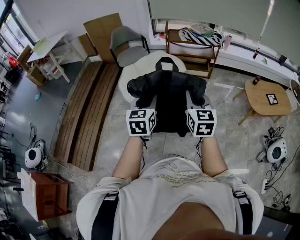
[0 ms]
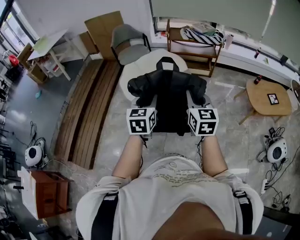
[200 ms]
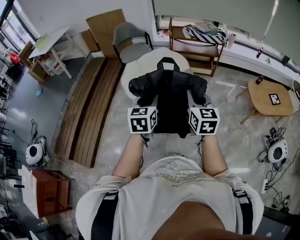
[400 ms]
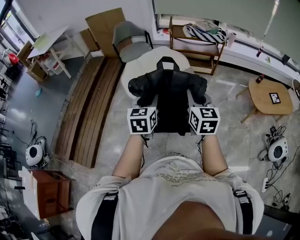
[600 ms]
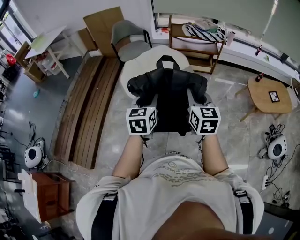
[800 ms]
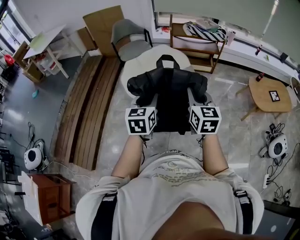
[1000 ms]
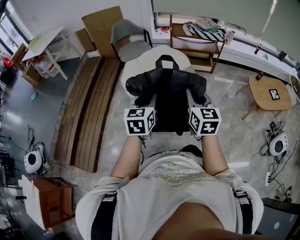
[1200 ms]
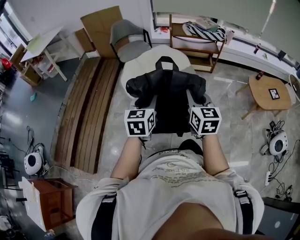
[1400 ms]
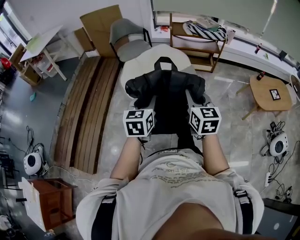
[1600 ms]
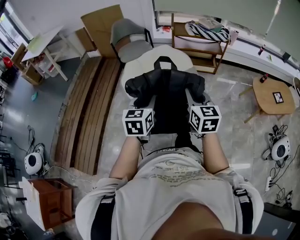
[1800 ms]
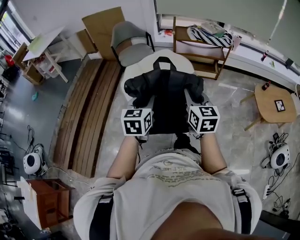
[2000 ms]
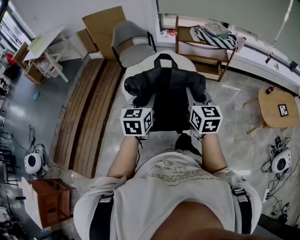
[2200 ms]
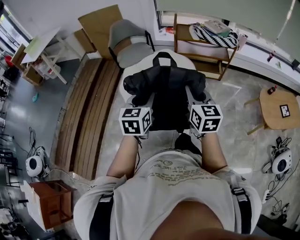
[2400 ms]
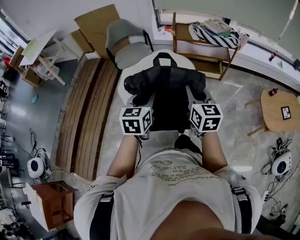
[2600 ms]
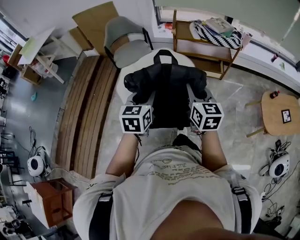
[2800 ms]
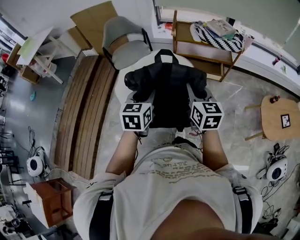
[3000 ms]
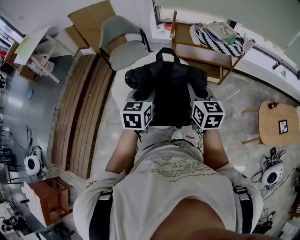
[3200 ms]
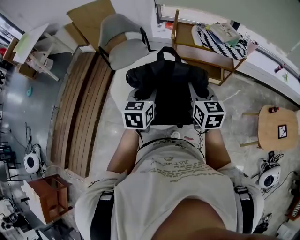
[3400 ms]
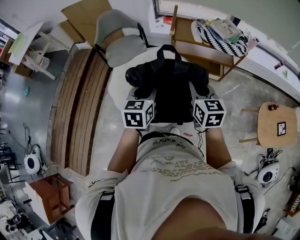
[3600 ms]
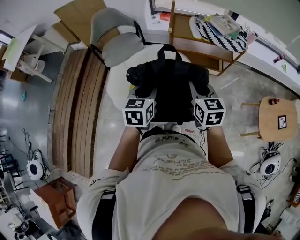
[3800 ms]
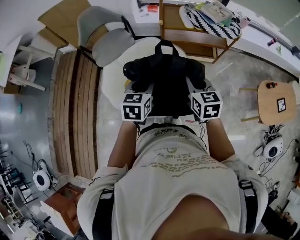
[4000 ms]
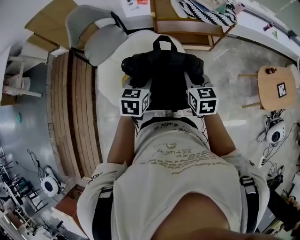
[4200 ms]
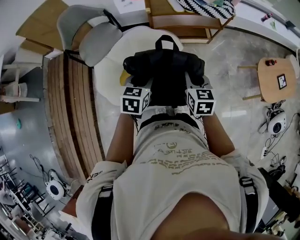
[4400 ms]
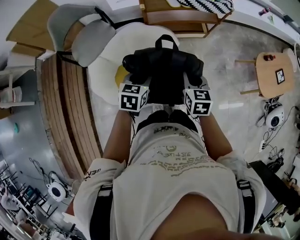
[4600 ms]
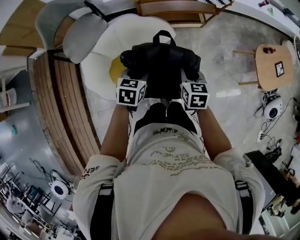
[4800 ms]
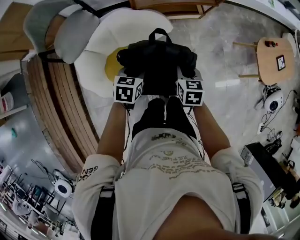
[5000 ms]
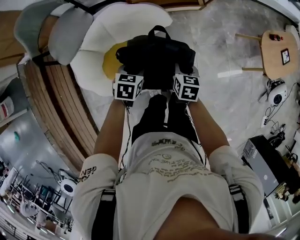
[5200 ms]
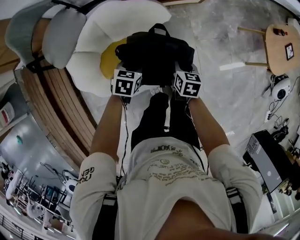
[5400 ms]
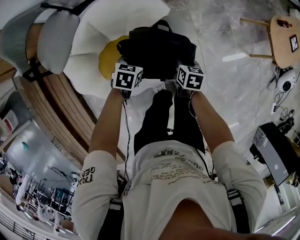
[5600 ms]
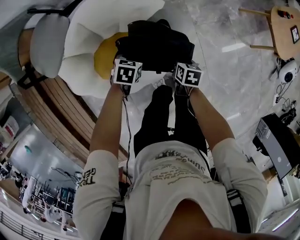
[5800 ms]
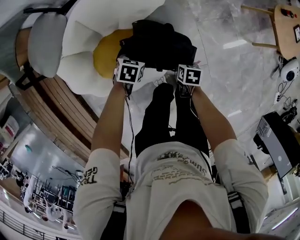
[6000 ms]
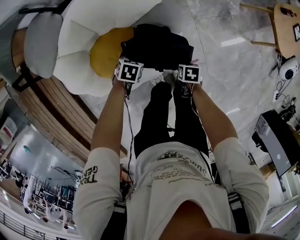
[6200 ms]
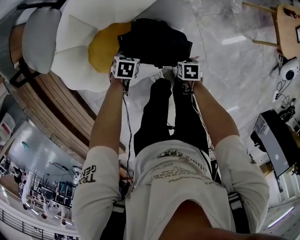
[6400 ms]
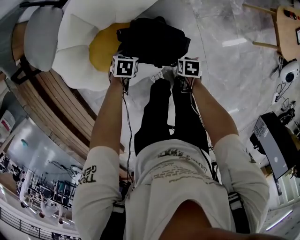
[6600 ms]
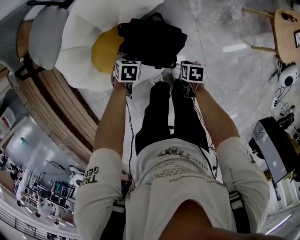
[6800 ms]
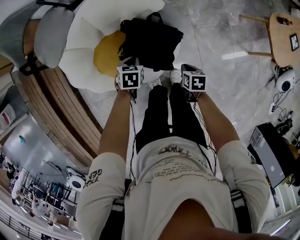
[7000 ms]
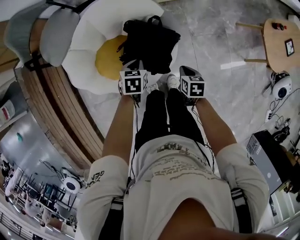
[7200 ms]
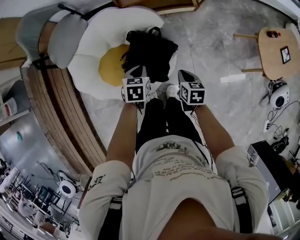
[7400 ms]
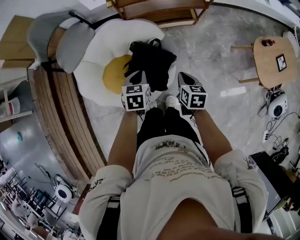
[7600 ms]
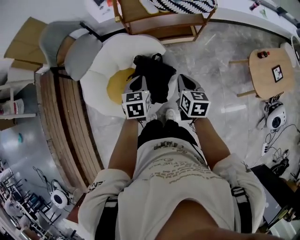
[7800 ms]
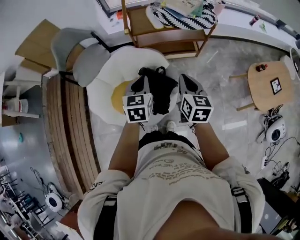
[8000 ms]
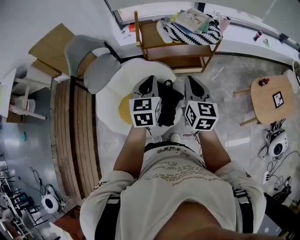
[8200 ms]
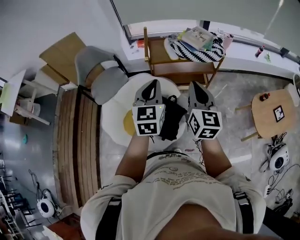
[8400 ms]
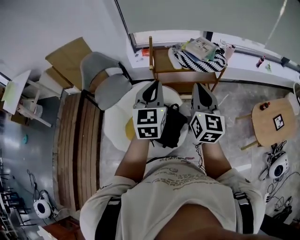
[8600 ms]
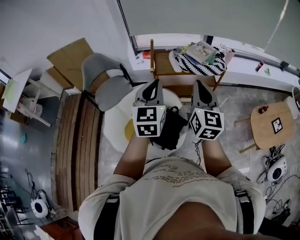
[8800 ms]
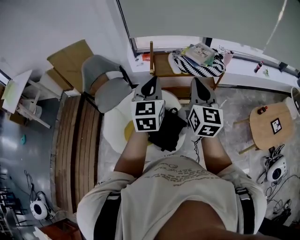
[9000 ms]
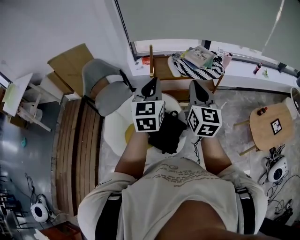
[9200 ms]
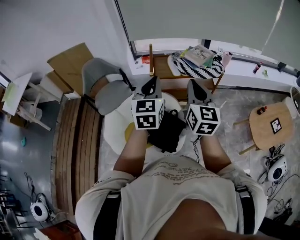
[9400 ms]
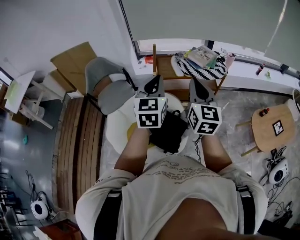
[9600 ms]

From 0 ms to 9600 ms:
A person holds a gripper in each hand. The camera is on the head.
From 0 ms to 1600 ms: The grippers move only a little.
From 1600 ms to 3200 ms: Both grippers move forward, roughly 30 cm.
From 3200 ms to 4800 ms: Both grippers travel together downward, about 20 cm. The right gripper changes its angle by approximately 40 degrees. The left gripper swivels roughly 40 degrees.
From 4800 ms to 6400 ms: Both grippers travel together downward, roughly 35 cm. The left gripper changes its angle by approximately 30 degrees, while the right gripper angles its fingers downward, by some 40 degrees.
From 6400 ms to 8000 ms: Both grippers move upward, roughly 50 cm. The left gripper tilts its fingers some 40 degrees upward, and closes its fingers. The right gripper tips its fingers upward by approximately 60 degrees, and closes up.
From 8000 ms to 9600 ms: Both grippers travel together upward, approximately 25 cm. The right gripper changes its angle by about 30 degrees, while the left gripper changes its angle by approximately 30 degrees.

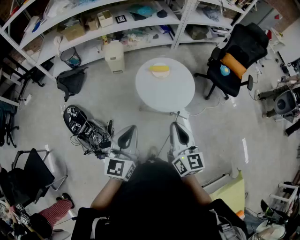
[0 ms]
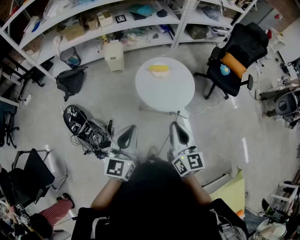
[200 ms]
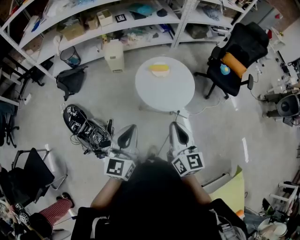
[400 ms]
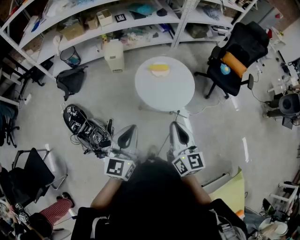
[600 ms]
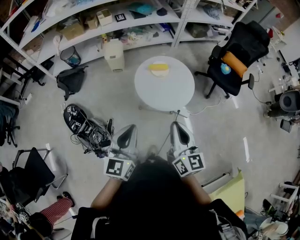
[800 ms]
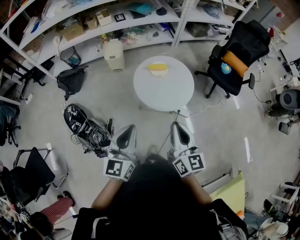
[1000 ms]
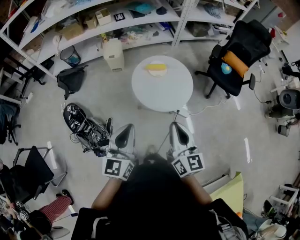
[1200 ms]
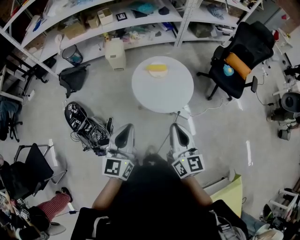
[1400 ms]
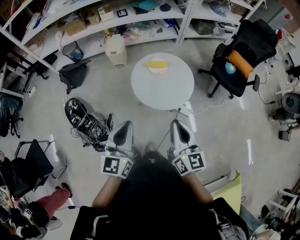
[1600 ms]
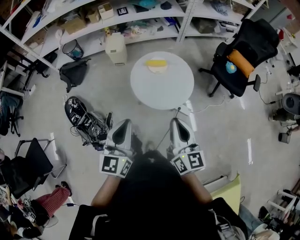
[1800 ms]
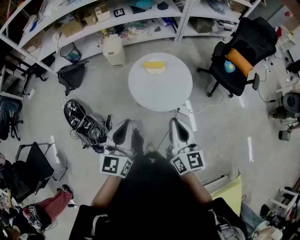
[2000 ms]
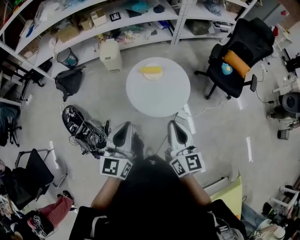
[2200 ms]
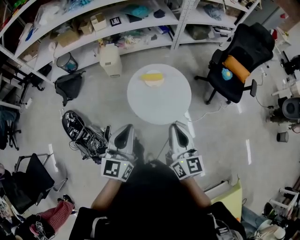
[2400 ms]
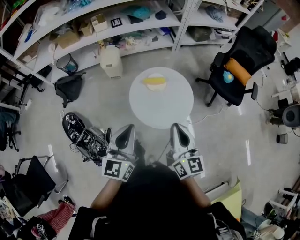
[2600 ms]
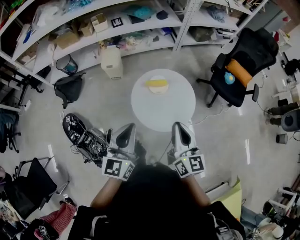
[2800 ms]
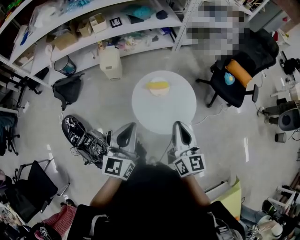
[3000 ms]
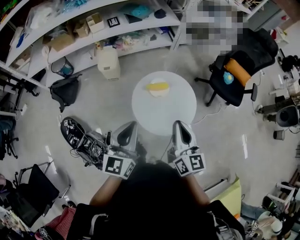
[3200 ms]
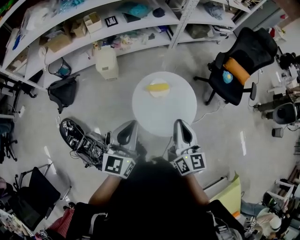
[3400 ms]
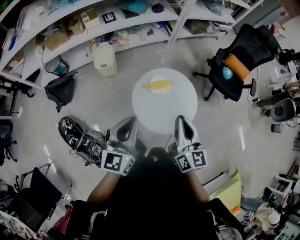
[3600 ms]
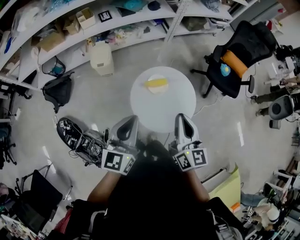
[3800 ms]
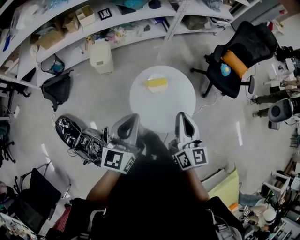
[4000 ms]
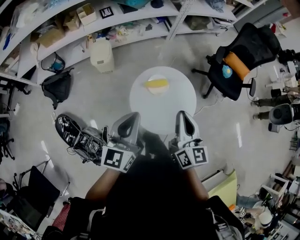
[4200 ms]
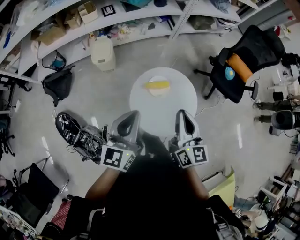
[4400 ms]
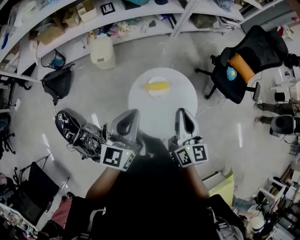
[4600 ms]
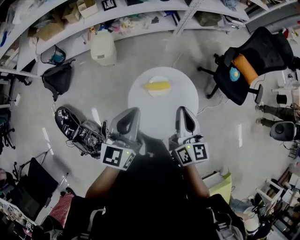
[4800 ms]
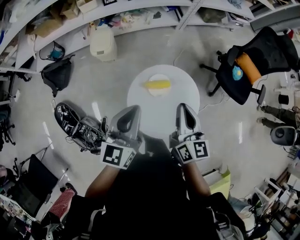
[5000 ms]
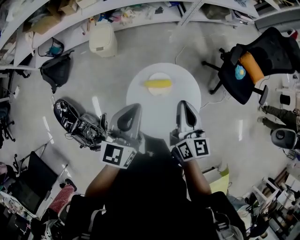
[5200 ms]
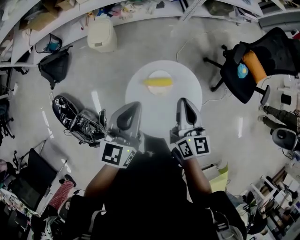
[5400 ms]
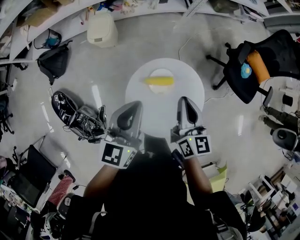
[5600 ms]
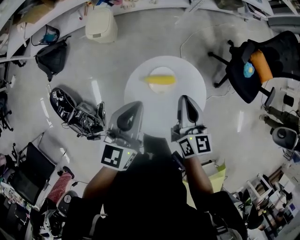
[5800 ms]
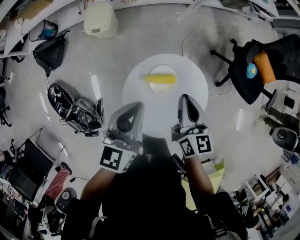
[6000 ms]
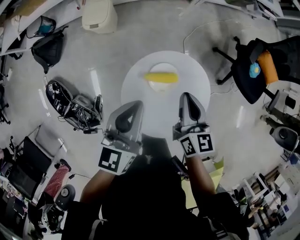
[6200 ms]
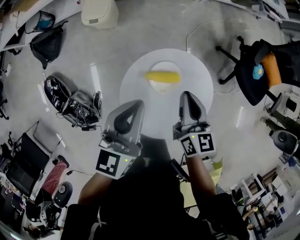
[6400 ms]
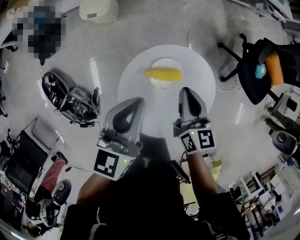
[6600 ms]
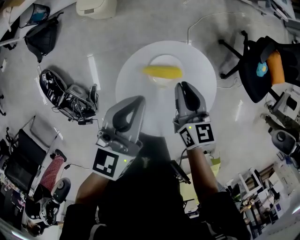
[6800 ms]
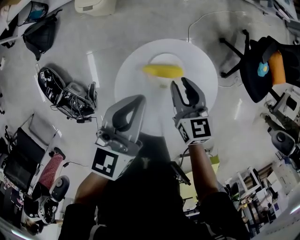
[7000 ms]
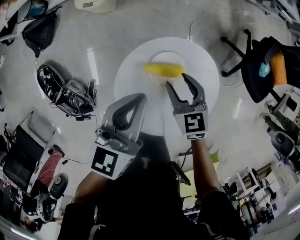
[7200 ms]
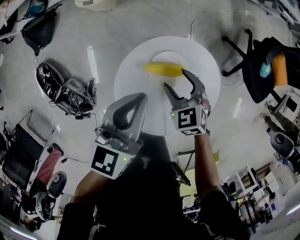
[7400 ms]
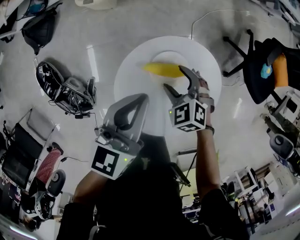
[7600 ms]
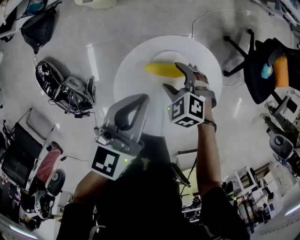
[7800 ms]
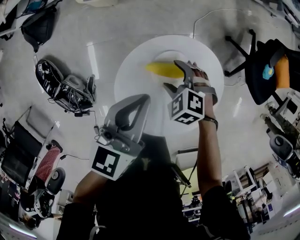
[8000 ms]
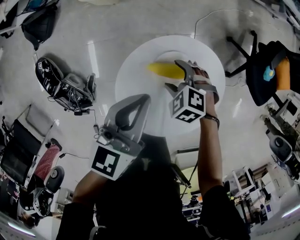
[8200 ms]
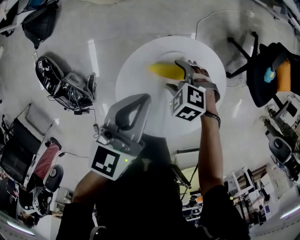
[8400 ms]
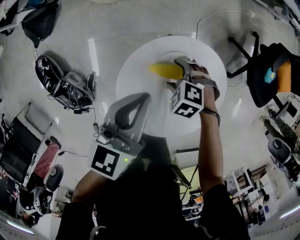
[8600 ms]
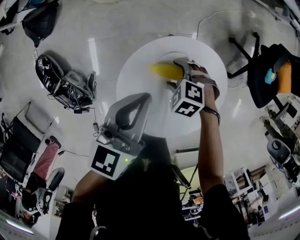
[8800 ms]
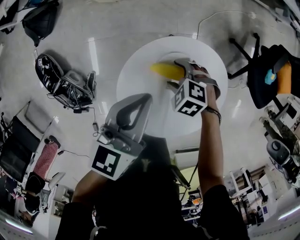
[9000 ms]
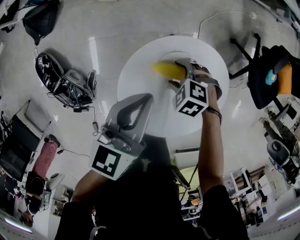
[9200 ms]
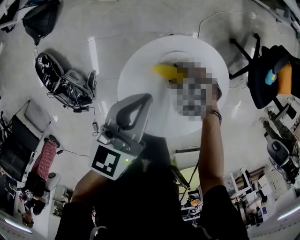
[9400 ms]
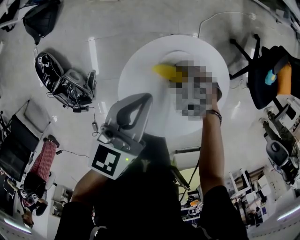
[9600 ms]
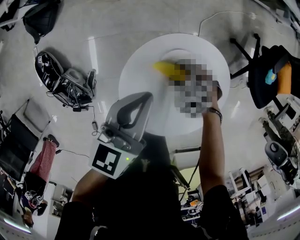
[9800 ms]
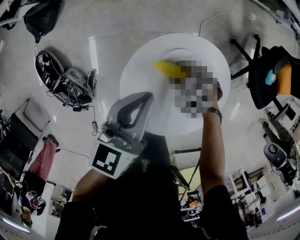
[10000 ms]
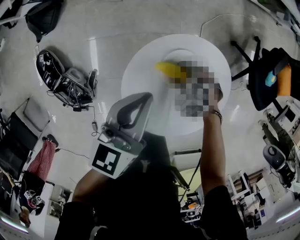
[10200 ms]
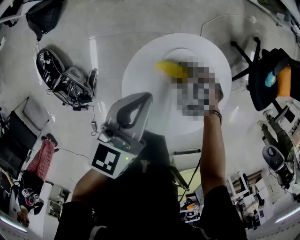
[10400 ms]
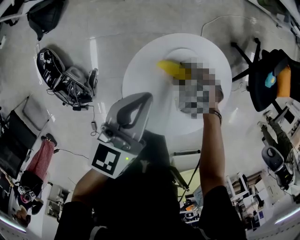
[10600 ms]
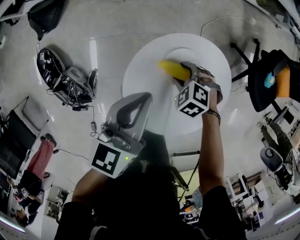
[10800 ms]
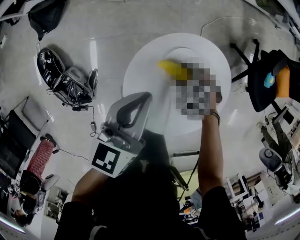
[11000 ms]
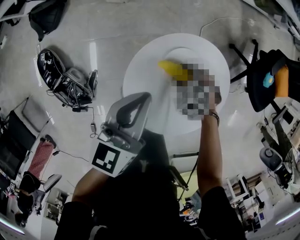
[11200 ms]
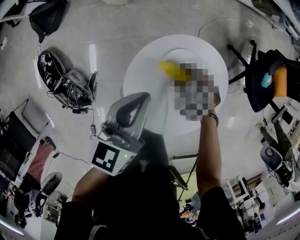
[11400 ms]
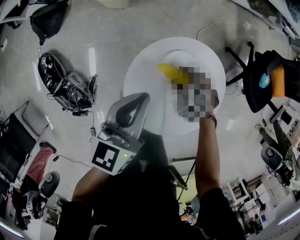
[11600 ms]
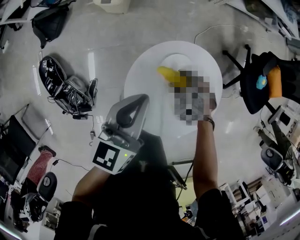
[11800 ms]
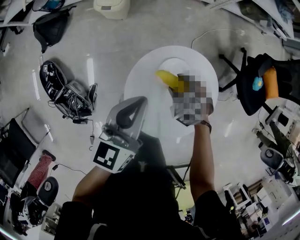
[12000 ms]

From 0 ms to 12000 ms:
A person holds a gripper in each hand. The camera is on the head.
From 0 ms to 1600 ms: The grippers both shift to the right by roughly 5 cm.
From 1600 ms to 3000 ms: The grippers both shift forward by roughly 15 cm.
From 3000 ms to 4400 ms: The two grippers go some 10 cm forward.
From 4400 ms to 6000 ms: The two grippers go approximately 20 cm forward and downward.
From 6000 ms to 7600 ms: The right gripper goes roughly 20 cm downward, points its fingers some 40 degrees further downward, and opens up. Meanwhile the left gripper shifts approximately 10 cm downward.
From 7600 ms to 9000 ms: The right gripper goes about 5 cm downward, and changes its angle by about 30 degrees.
From 9000 ms to 10400 ms: The grippers move only a little.
From 10400 ms to 12000 ms: Both grippers travel together upward, some 5 cm.

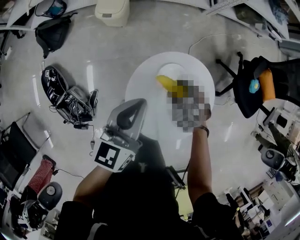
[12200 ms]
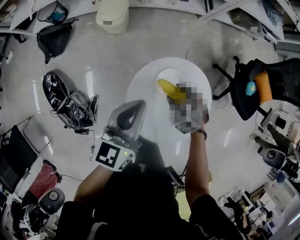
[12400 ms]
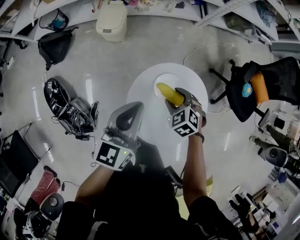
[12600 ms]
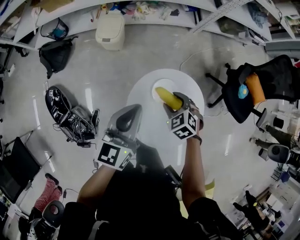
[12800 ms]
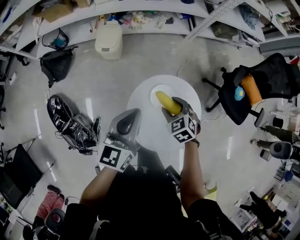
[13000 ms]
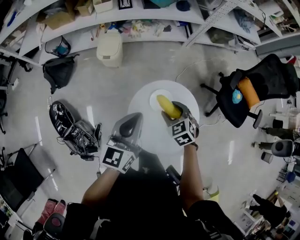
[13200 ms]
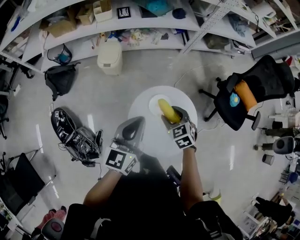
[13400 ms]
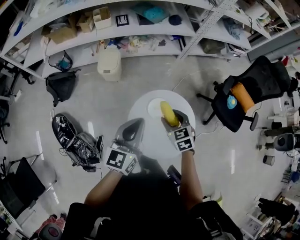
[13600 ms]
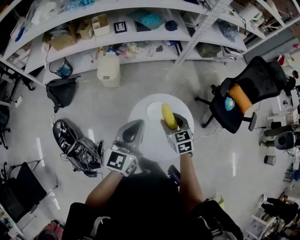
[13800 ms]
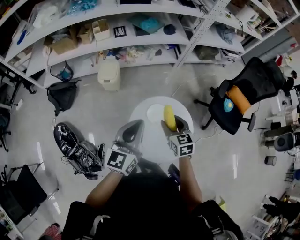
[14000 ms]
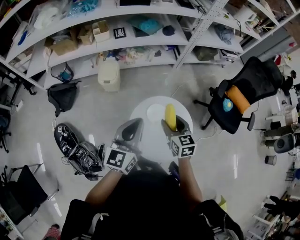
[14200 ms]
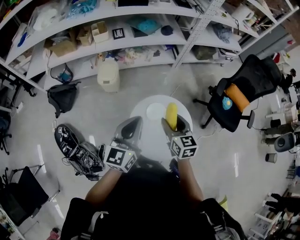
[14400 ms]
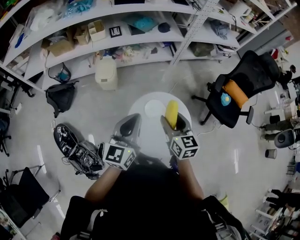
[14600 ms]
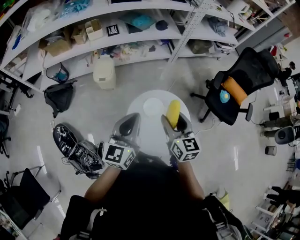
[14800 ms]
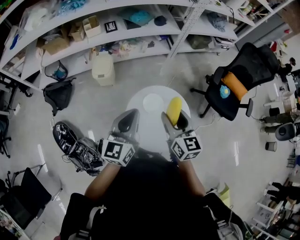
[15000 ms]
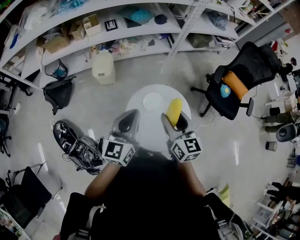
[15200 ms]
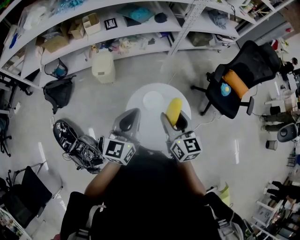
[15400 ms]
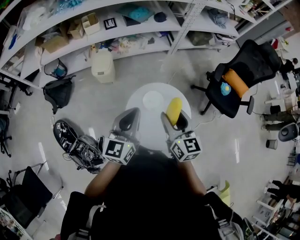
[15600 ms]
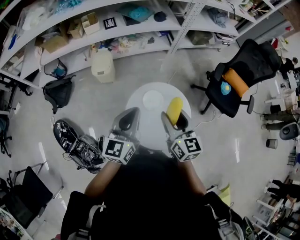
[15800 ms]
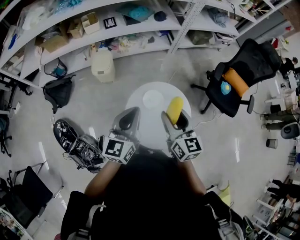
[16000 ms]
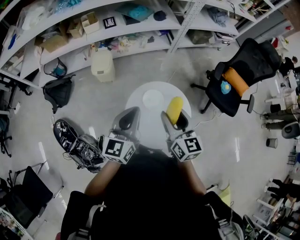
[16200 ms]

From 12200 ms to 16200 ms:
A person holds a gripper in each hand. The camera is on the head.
From 12200 ms to 13600 ms: The grippers both shift upward by about 15 cm. The right gripper turns by some 40 degrees.
From 13600 ms to 14800 ms: The right gripper moves upward, roughly 15 cm, and changes its angle by about 40 degrees.
From 14800 ms to 16200 ms: There are only small adjustments of the grippers.
